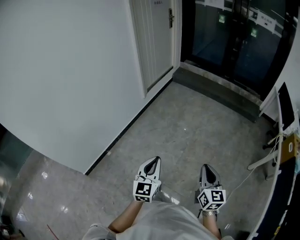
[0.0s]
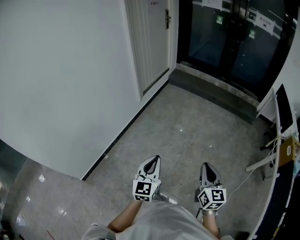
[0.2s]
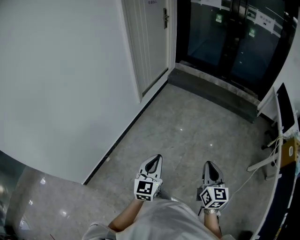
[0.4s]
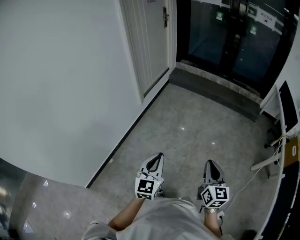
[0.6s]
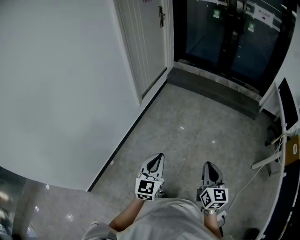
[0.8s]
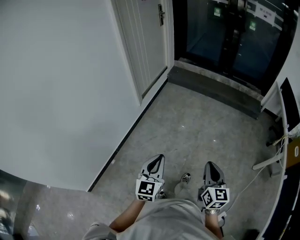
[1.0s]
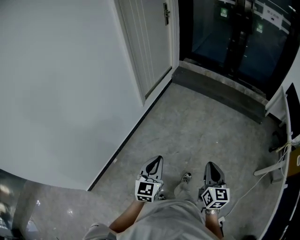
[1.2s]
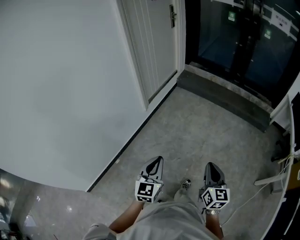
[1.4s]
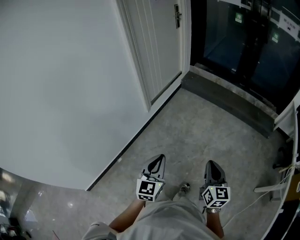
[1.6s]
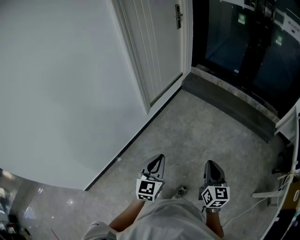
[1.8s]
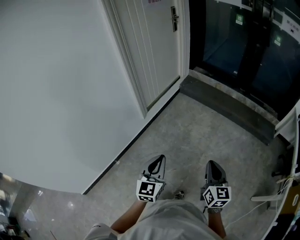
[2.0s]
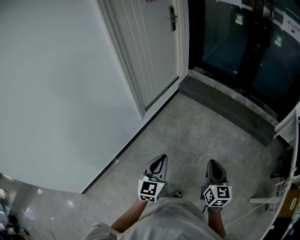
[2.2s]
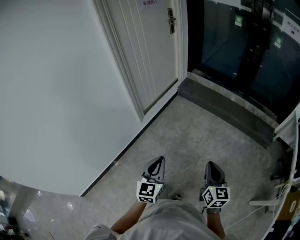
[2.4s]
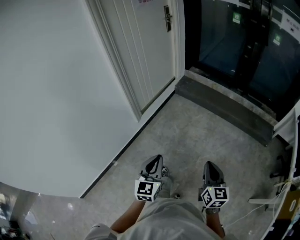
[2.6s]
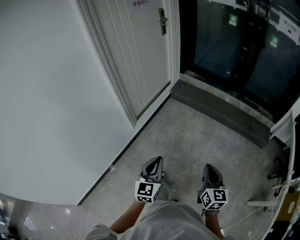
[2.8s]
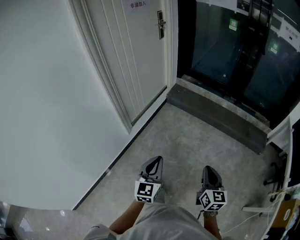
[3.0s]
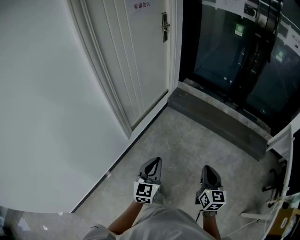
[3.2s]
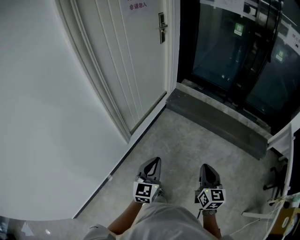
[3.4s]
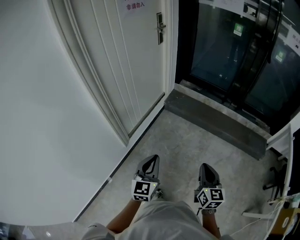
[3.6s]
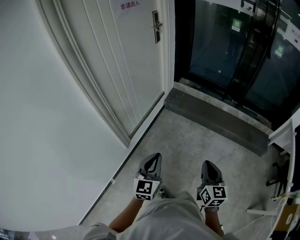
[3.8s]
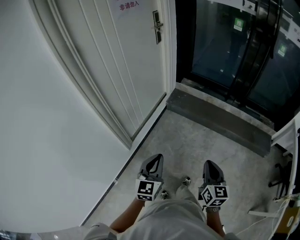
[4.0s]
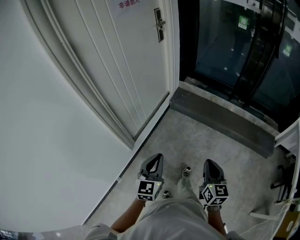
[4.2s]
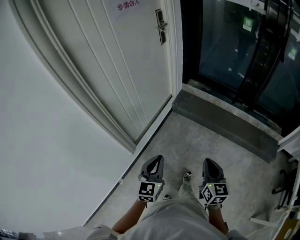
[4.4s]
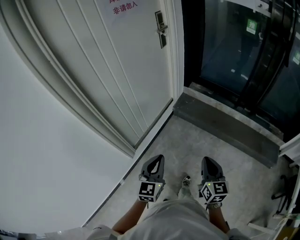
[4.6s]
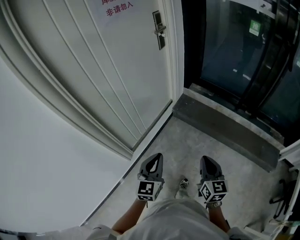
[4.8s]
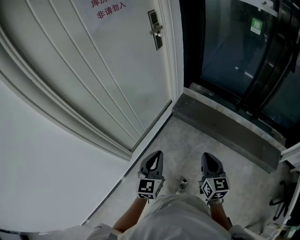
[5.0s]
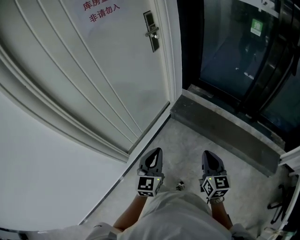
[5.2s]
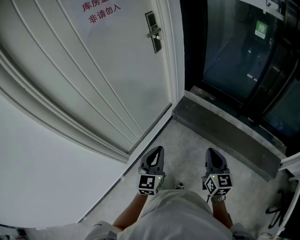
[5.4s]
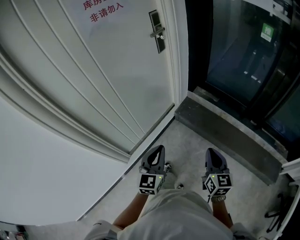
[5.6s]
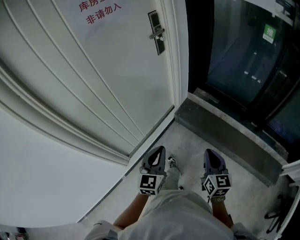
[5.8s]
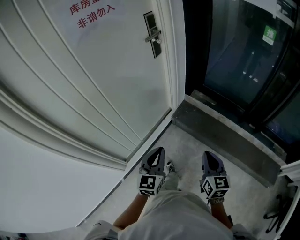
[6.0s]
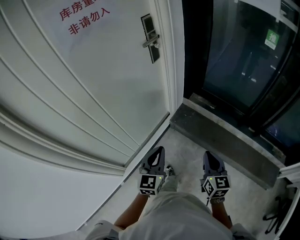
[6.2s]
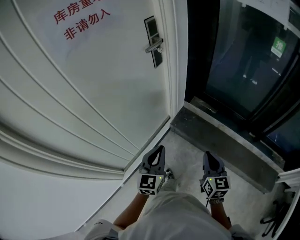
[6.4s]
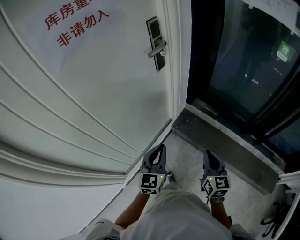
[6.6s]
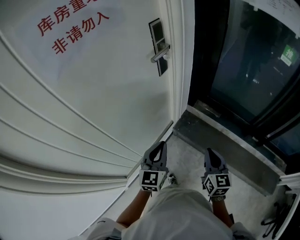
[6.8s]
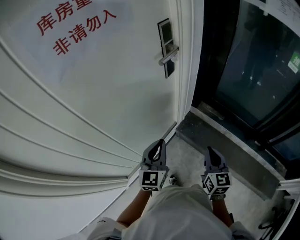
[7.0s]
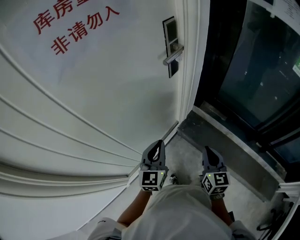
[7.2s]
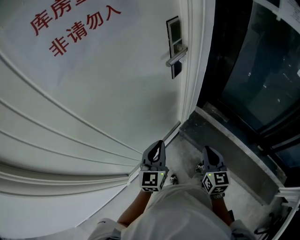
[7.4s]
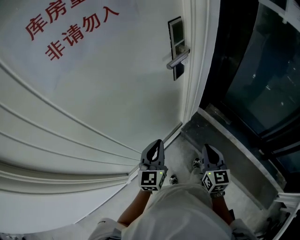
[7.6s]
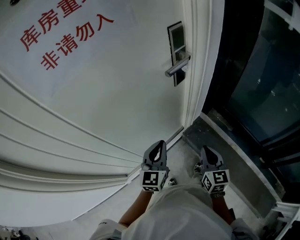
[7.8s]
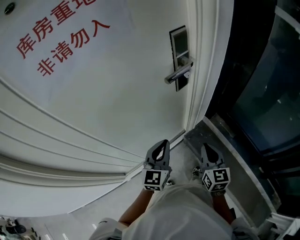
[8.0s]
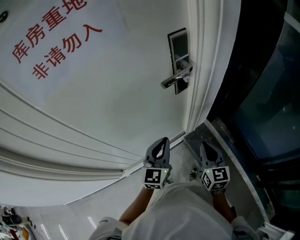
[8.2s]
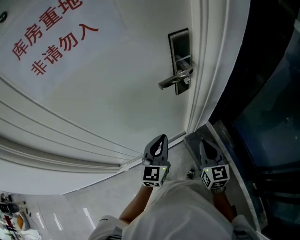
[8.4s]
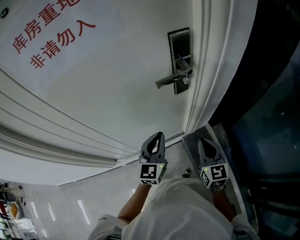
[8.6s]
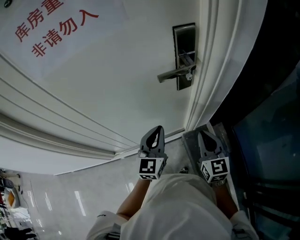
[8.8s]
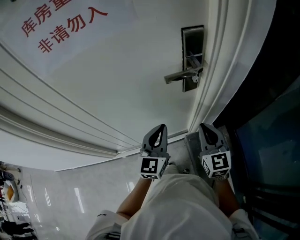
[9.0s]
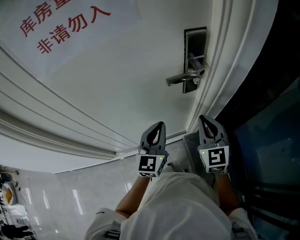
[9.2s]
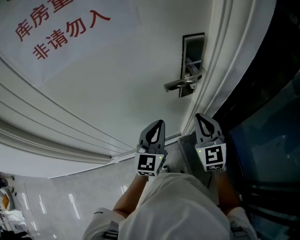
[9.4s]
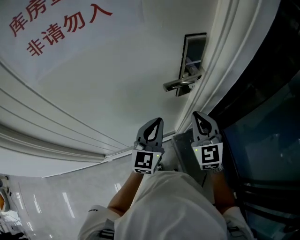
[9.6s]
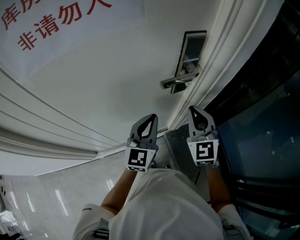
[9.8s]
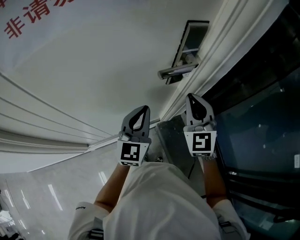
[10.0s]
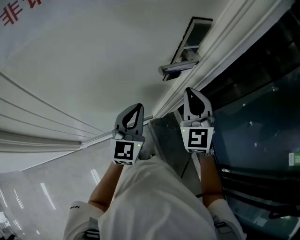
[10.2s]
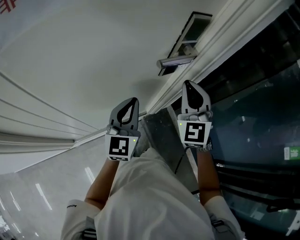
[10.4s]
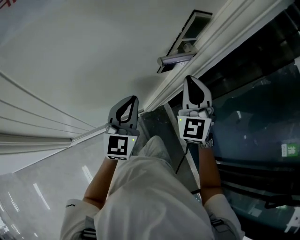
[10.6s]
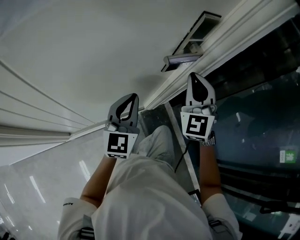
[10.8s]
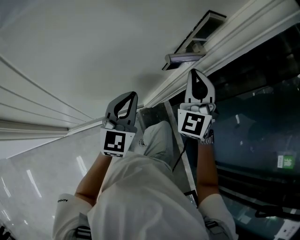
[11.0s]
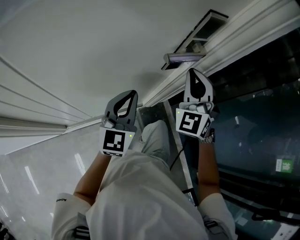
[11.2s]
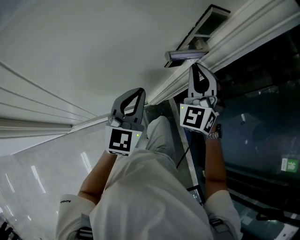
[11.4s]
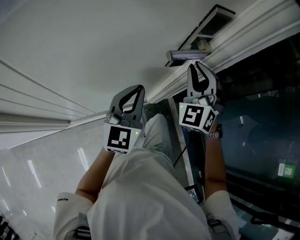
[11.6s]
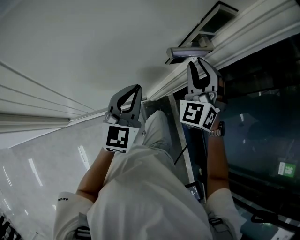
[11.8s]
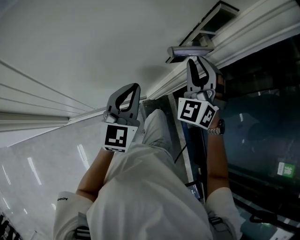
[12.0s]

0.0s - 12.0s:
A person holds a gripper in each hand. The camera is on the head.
0.0s - 1.6s: Both grippers travel together forward, some 35 cm.
1.6s - 3.0s: The right gripper travels forward and to the right by about 30 cm. Meanwhile the left gripper shifts about 30 cm forward.
3.0s - 4.4s: The two grippers go roughly 30 cm forward.
4.4s - 6.0s: The two grippers go about 35 cm forward.
6.0s - 7.6s: The grippers both shift forward by approximately 30 cm.
7.6s - 9.0s: The right gripper ends up roughly 20 cm from where it was, and swivels approximately 40 degrees, while the left gripper changes place by about 15 cm, and changes its angle by about 20 degrees.
9.0s - 10.4s: The left gripper shifts by some 5 cm. Meanwhile the right gripper travels upward and forward by about 10 cm, and turns by approximately 40 degrees.
10.4s - 12.0s: The right gripper goes about 5 cm forward, turns by some 30 degrees, and opens its fingers.

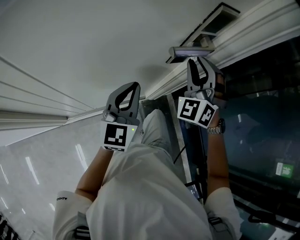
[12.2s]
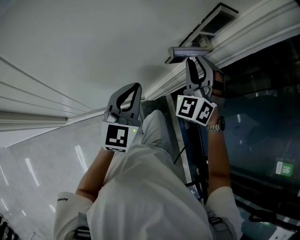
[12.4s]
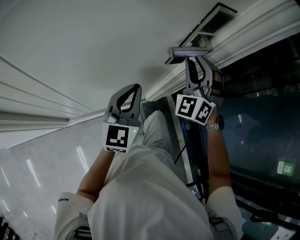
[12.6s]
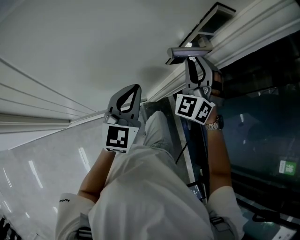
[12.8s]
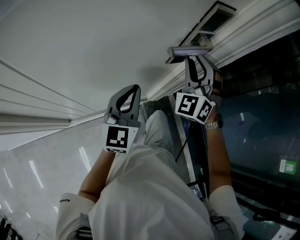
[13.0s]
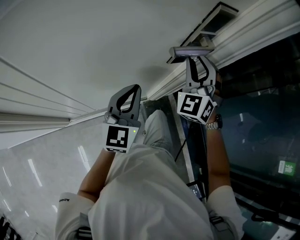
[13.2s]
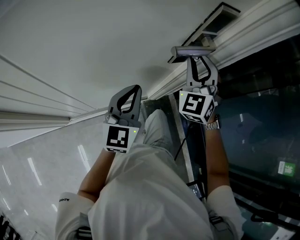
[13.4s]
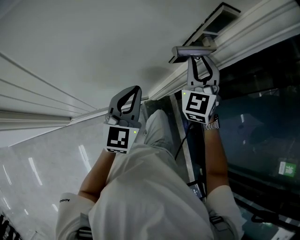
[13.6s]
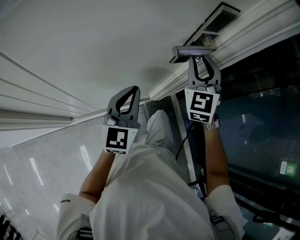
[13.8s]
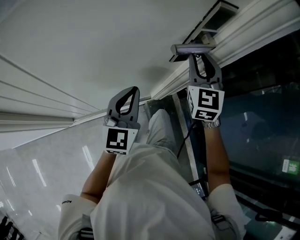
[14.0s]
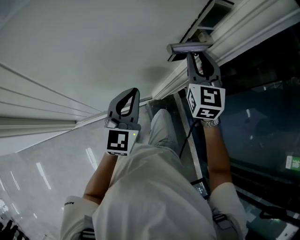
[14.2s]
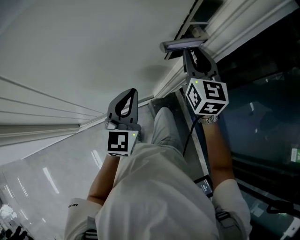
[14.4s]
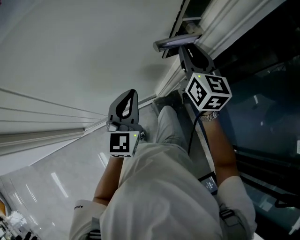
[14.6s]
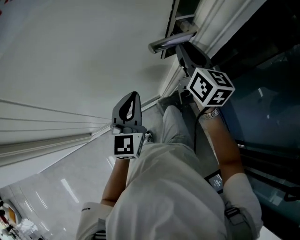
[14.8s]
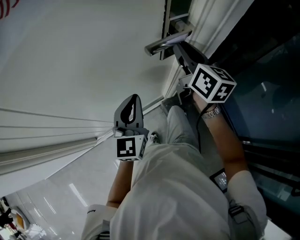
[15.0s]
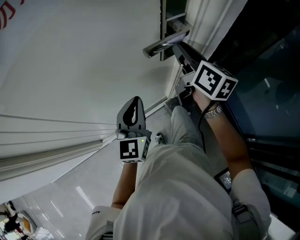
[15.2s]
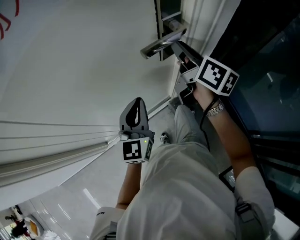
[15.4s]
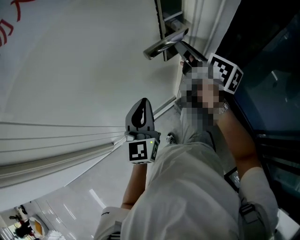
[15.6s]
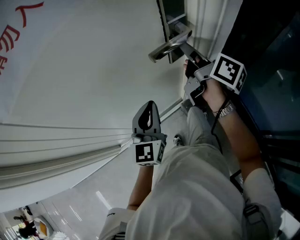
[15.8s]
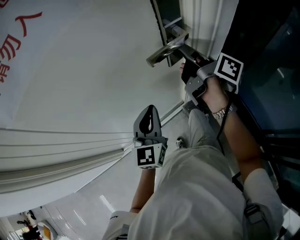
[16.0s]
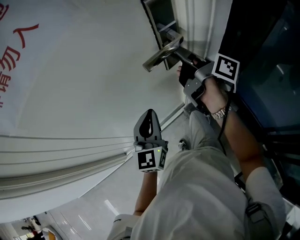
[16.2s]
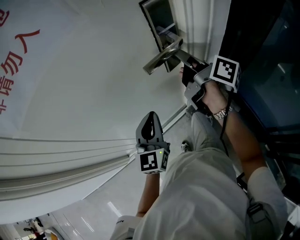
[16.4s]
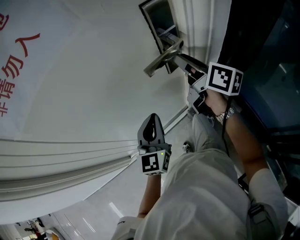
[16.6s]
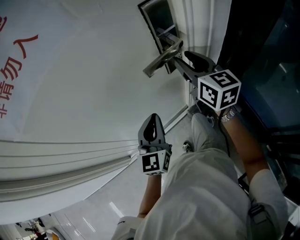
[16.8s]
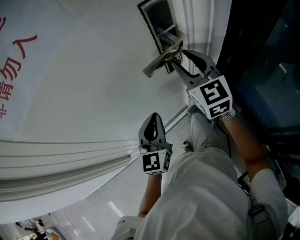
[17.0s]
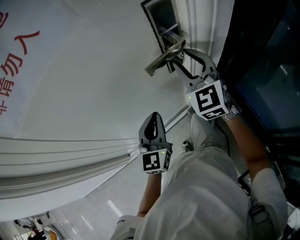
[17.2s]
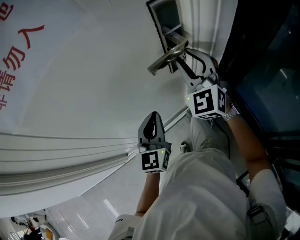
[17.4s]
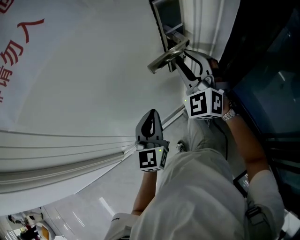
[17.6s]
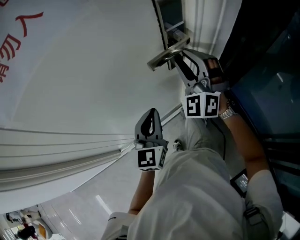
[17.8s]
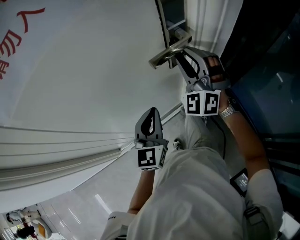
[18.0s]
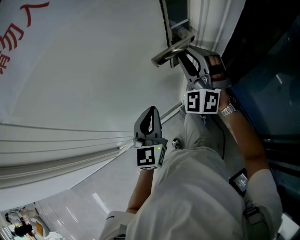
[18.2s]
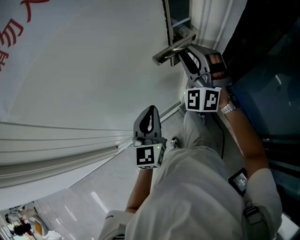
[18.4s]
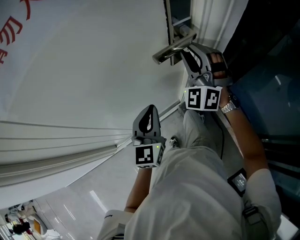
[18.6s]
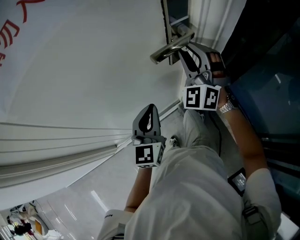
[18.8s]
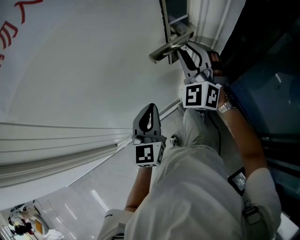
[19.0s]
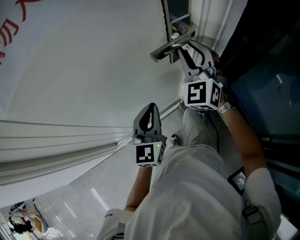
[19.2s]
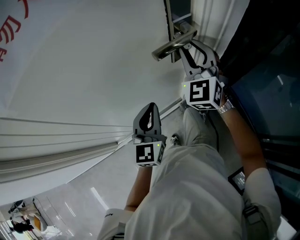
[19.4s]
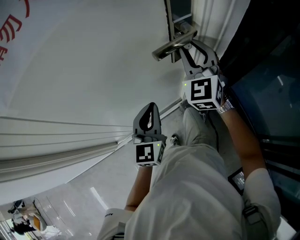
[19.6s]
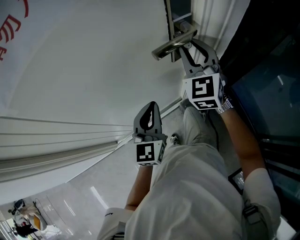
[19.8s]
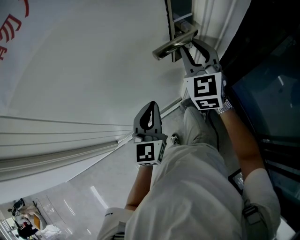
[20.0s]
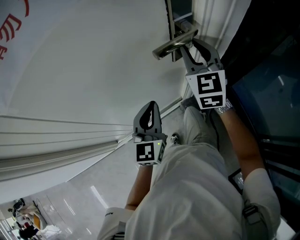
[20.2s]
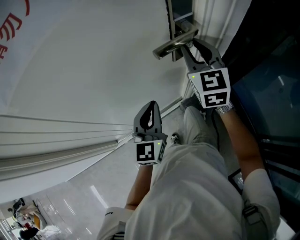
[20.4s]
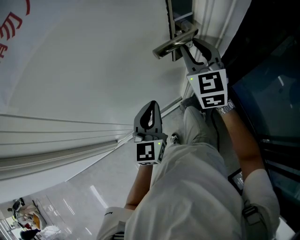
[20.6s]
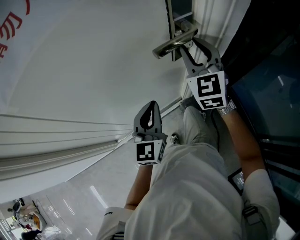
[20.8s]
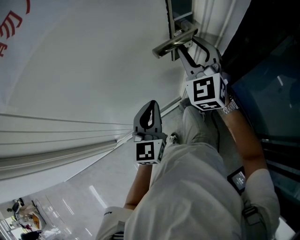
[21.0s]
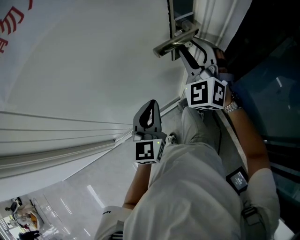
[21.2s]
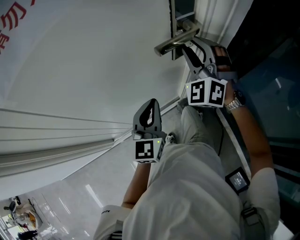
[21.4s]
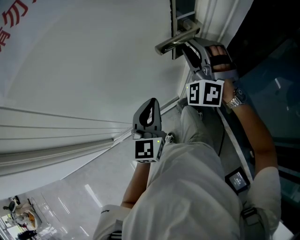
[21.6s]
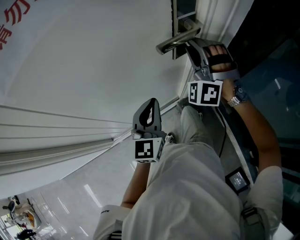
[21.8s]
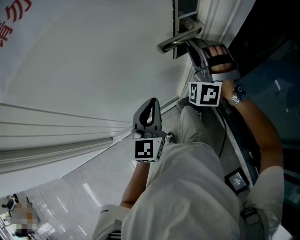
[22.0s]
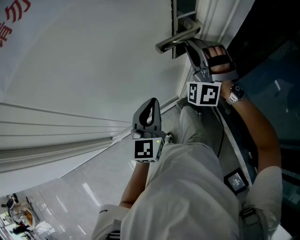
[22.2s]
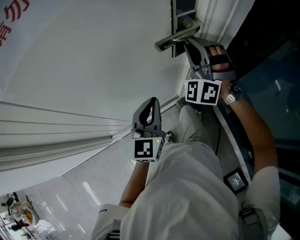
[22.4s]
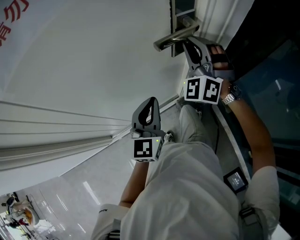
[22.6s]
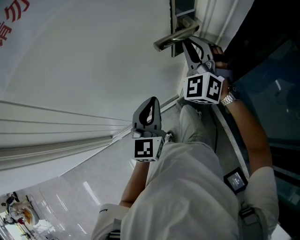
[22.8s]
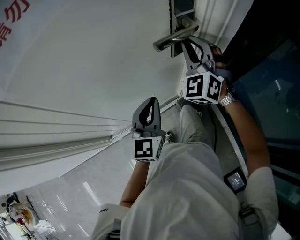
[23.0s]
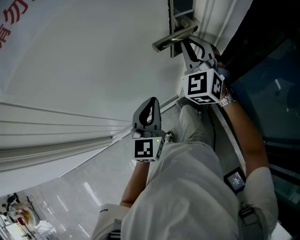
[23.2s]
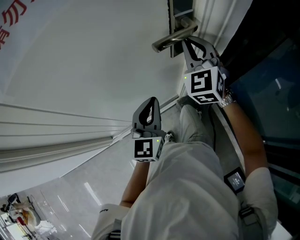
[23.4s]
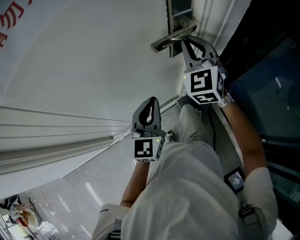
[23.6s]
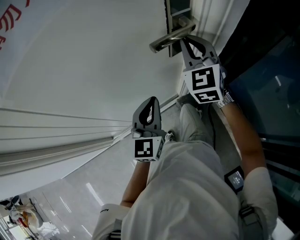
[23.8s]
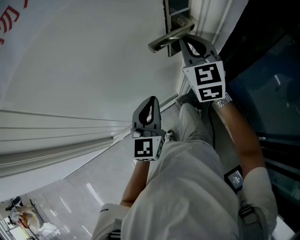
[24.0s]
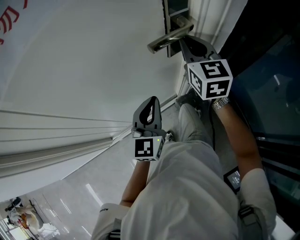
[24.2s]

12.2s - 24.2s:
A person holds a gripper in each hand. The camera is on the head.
12.2s - 13.8s: The right gripper rotates approximately 30 degrees.
13.8s - 15.2s: The right gripper rolls clockwise, seen from behind, by roughly 70 degrees.
16.6s - 18.2s: The right gripper rolls counterclockwise, seen from behind, by roughly 110 degrees.
18.2s - 19.8s: The right gripper turns by roughly 40 degrees.
19.8s - 21.2s: The right gripper changes its angle by roughly 20 degrees.
21.2s - 22.6s: The right gripper closes up.
22.6s - 24.2s: The right gripper rotates around the line of its fingers by some 60 degrees, clockwise from behind.
